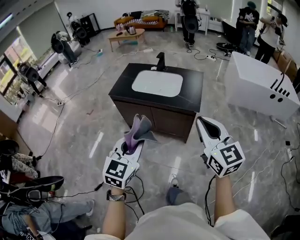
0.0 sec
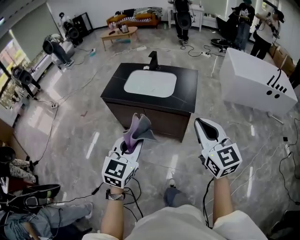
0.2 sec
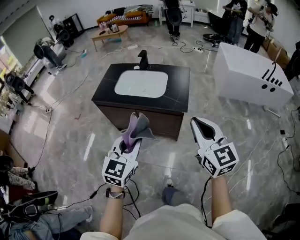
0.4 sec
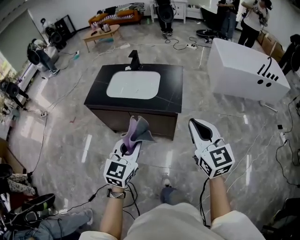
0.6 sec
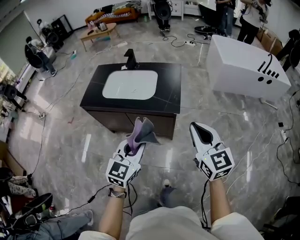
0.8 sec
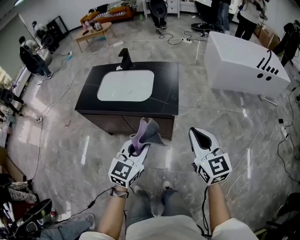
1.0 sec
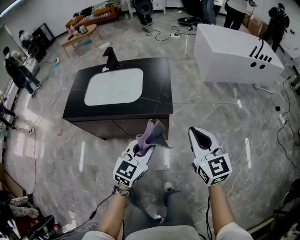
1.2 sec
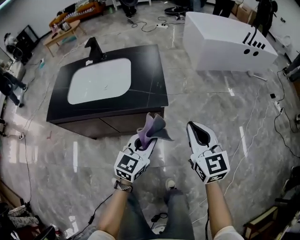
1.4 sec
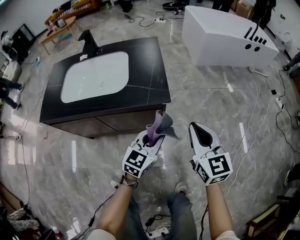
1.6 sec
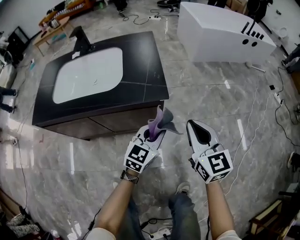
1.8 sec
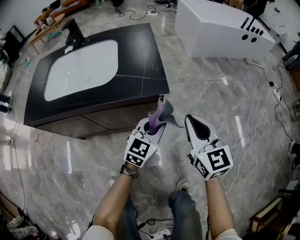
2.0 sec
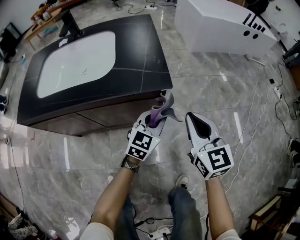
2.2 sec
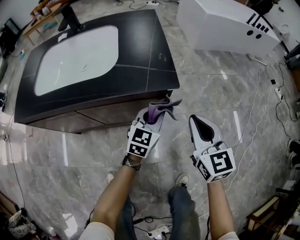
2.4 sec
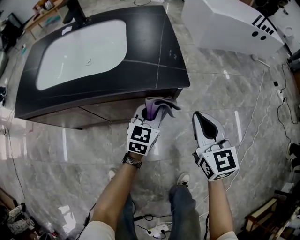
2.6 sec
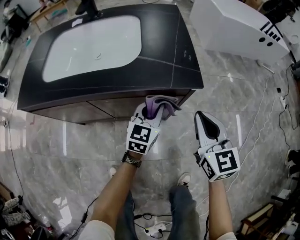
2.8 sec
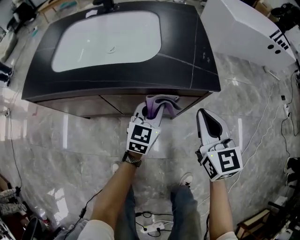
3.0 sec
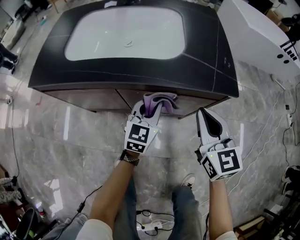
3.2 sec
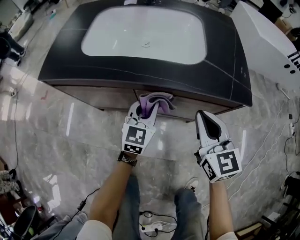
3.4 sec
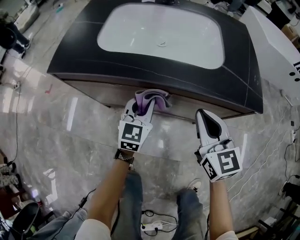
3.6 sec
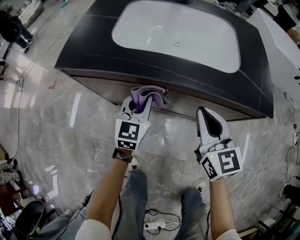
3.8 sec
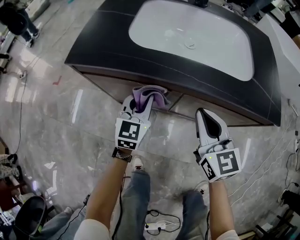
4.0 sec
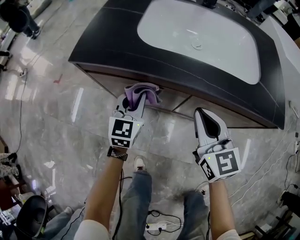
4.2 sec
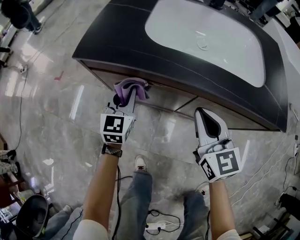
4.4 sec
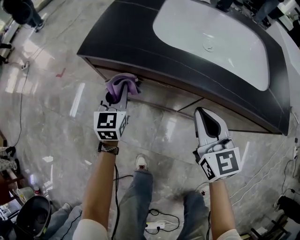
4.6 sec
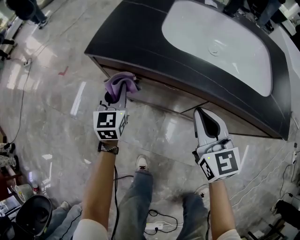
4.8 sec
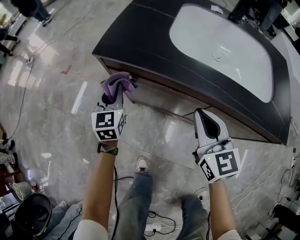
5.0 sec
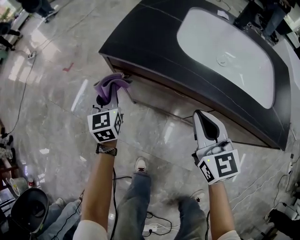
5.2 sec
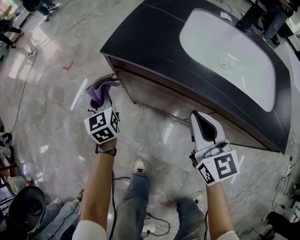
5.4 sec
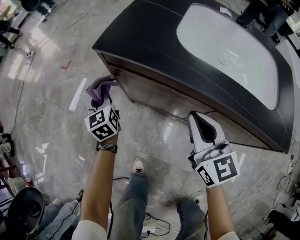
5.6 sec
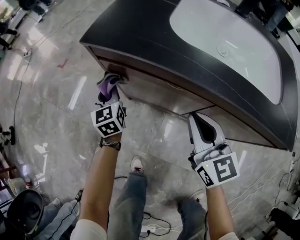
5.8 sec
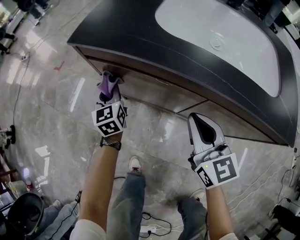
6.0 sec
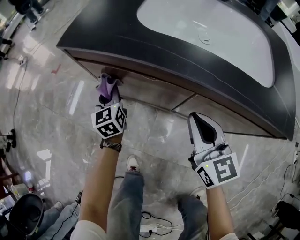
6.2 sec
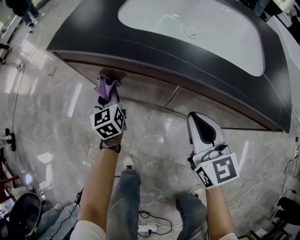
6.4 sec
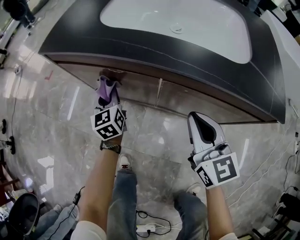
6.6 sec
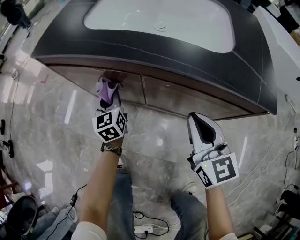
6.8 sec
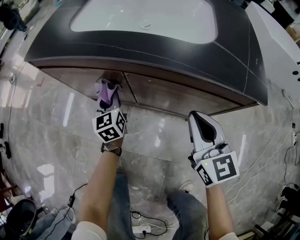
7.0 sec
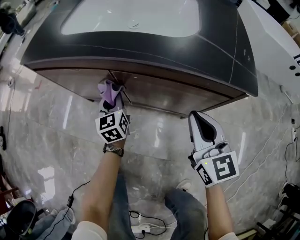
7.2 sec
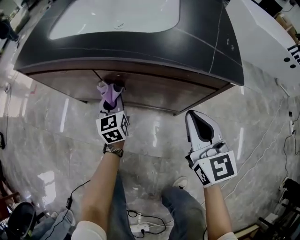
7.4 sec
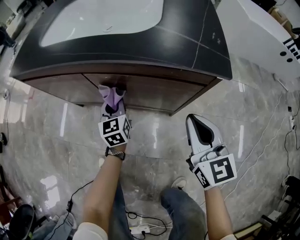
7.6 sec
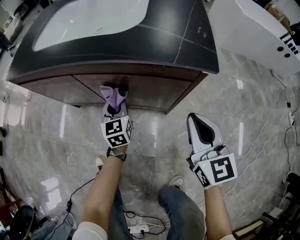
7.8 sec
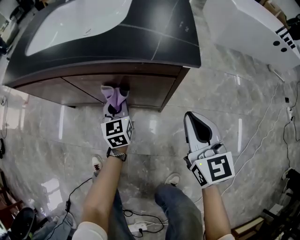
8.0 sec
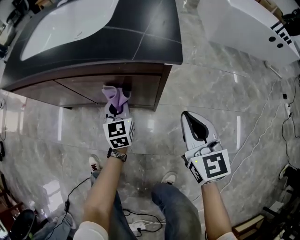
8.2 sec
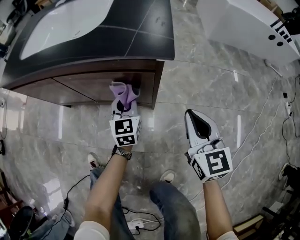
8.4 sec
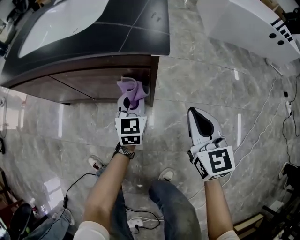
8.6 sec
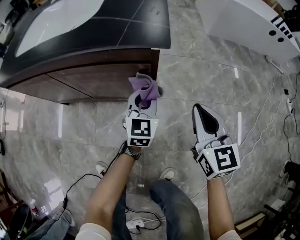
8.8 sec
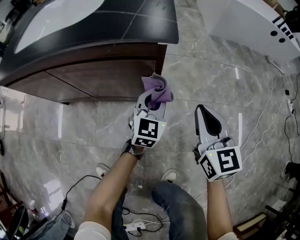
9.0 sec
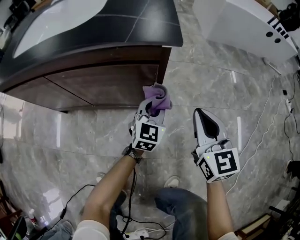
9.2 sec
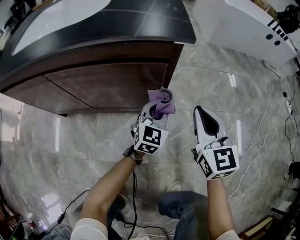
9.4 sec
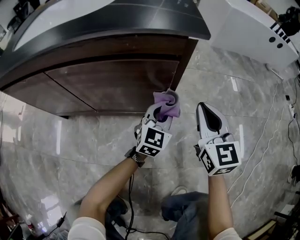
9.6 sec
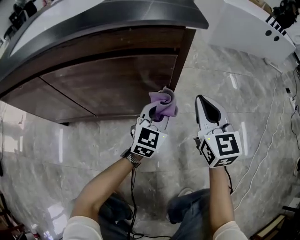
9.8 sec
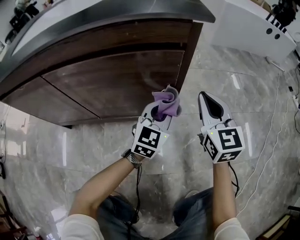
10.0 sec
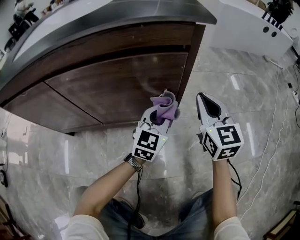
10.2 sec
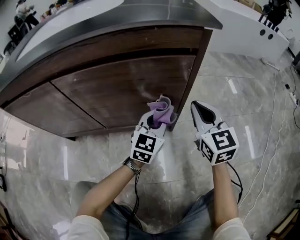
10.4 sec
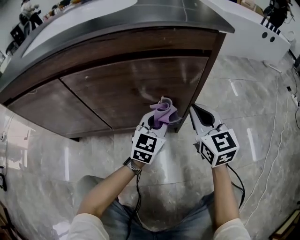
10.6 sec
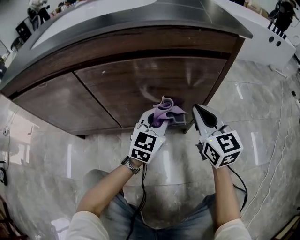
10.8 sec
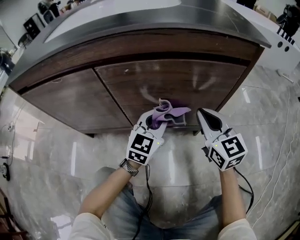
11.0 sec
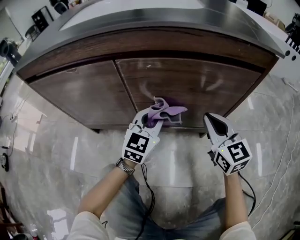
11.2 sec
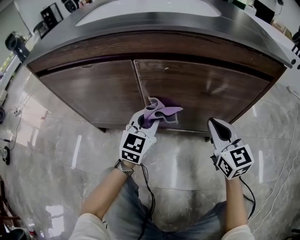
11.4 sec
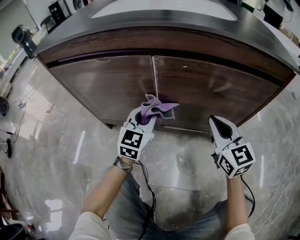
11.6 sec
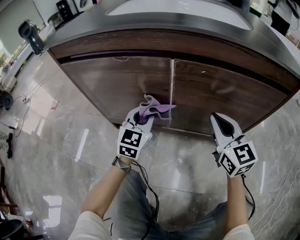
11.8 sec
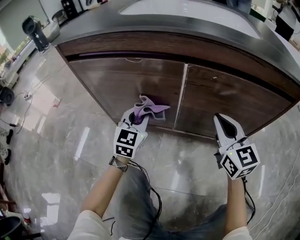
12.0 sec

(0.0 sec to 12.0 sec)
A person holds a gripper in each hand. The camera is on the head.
0.0 sec - 1.6 sec: The left gripper moves roughly 50 cm, and rotates about 40 degrees. Meanwhile the right gripper is displaced downward by approximately 30 cm, and rotates roughly 30 degrees.
1.6 sec - 3.0 sec: The right gripper travels to the left and downward by roughly 20 cm; the left gripper goes about 25 cm to the left, downward and forward.
3.0 sec - 4.4 sec: Both grippers travel together to the left, roughly 40 cm. The left gripper changes its angle by some 30 degrees.
4.4 sec - 6.0 sec: The left gripper moves to the left and downward, some 10 cm, and turns by about 30 degrees.
6.0 sec - 7.6 sec: Both grippers move to the right and backward, approximately 40 cm.
7.6 sec - 9.0 sec: The left gripper travels to the right by approximately 30 cm, and turns by some 40 degrees. Meanwhile the right gripper moves to the right, roughly 15 cm.
9.0 sec - 10.4 sec: The left gripper heads downward and to the left, covering about 15 cm. The right gripper is displaced downward, to the left and forward by some 15 cm.
10.4 sec - 12.0 sec: The right gripper heads to the left, covering some 30 cm. The left gripper heads to the left, covering about 40 cm, and turns by about 30 degrees.

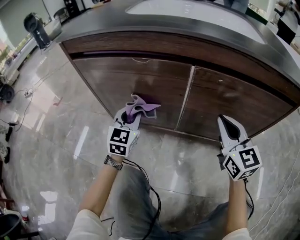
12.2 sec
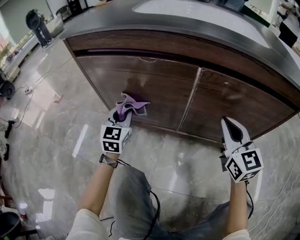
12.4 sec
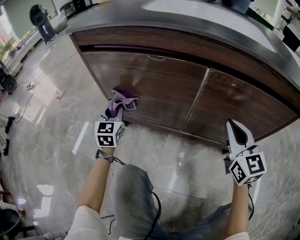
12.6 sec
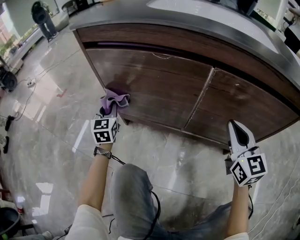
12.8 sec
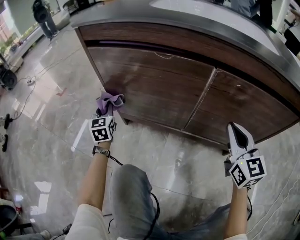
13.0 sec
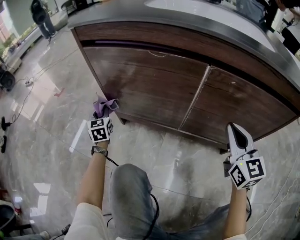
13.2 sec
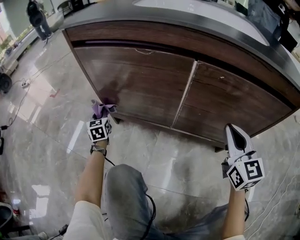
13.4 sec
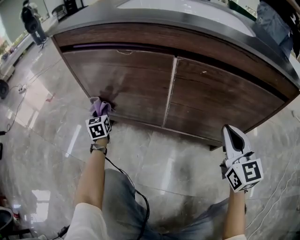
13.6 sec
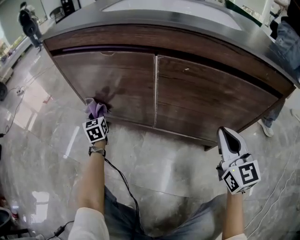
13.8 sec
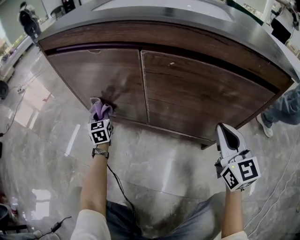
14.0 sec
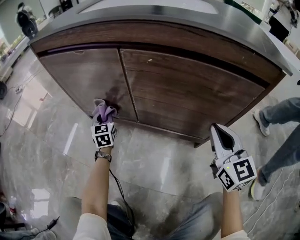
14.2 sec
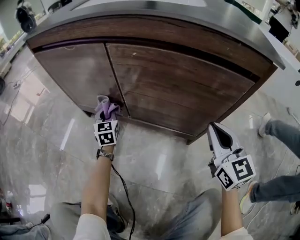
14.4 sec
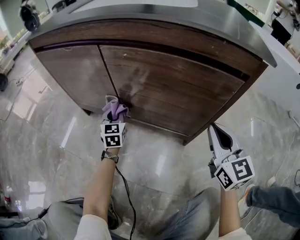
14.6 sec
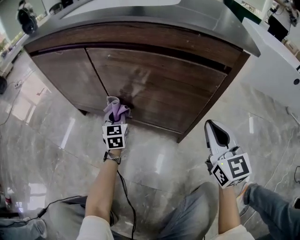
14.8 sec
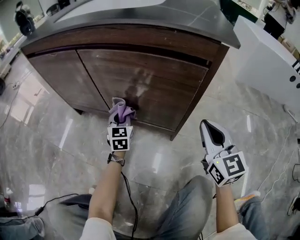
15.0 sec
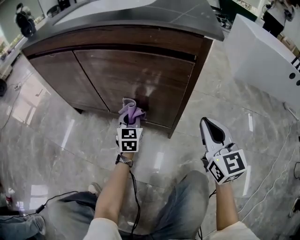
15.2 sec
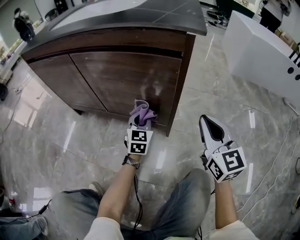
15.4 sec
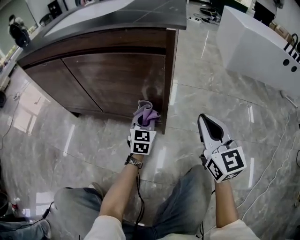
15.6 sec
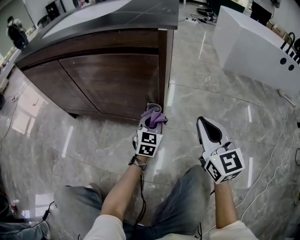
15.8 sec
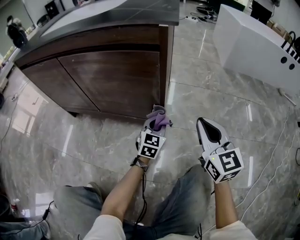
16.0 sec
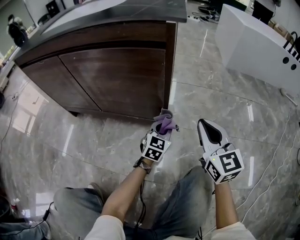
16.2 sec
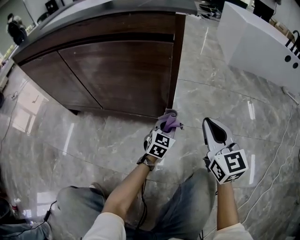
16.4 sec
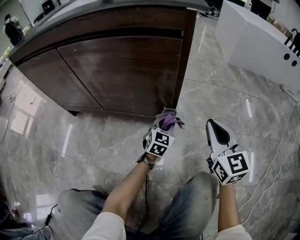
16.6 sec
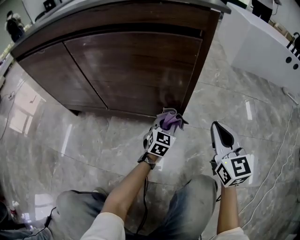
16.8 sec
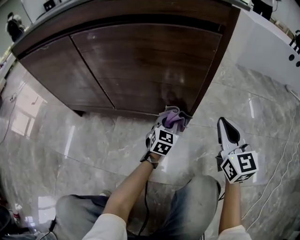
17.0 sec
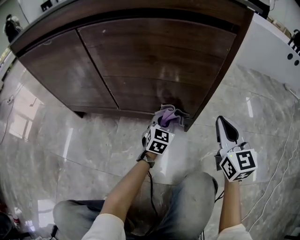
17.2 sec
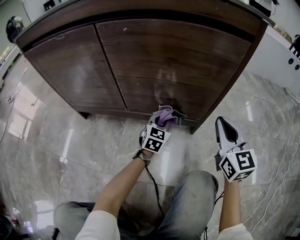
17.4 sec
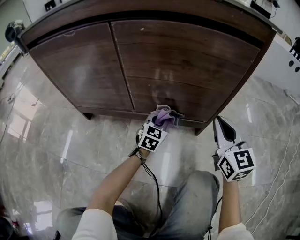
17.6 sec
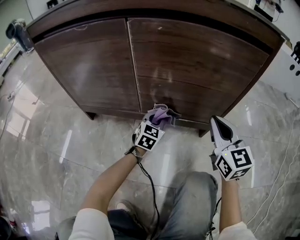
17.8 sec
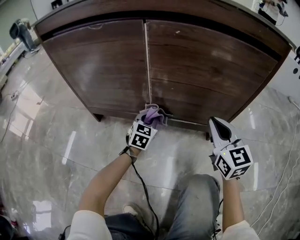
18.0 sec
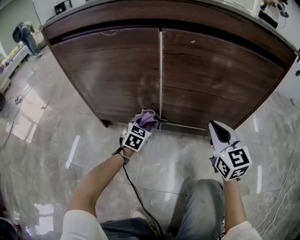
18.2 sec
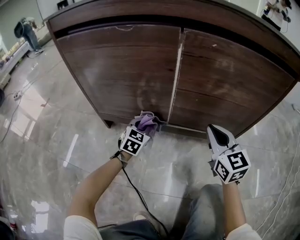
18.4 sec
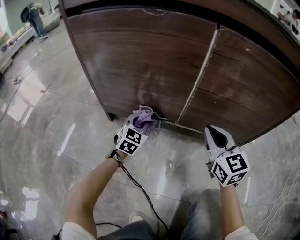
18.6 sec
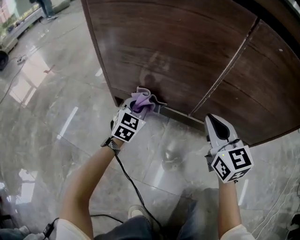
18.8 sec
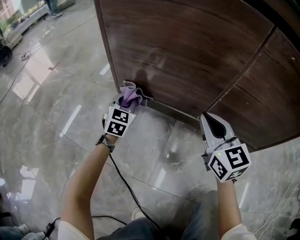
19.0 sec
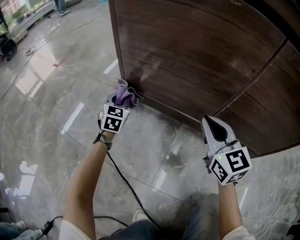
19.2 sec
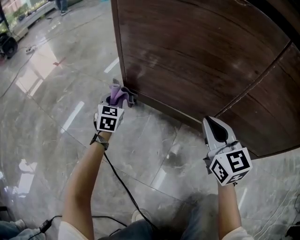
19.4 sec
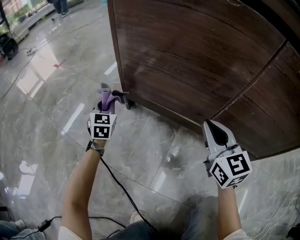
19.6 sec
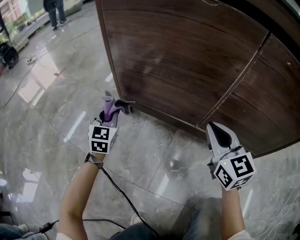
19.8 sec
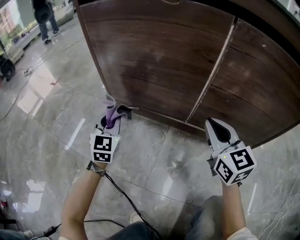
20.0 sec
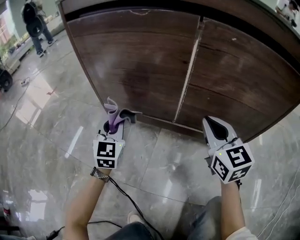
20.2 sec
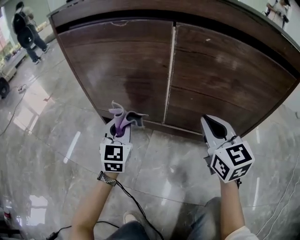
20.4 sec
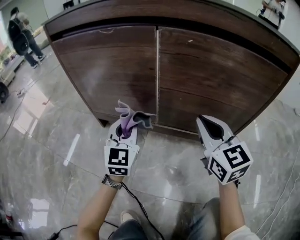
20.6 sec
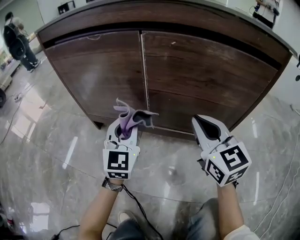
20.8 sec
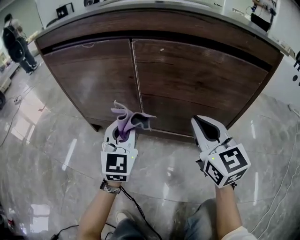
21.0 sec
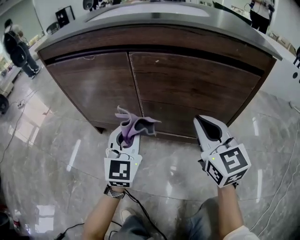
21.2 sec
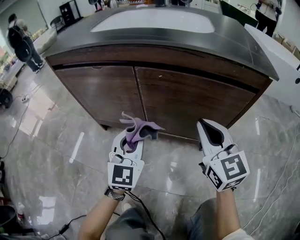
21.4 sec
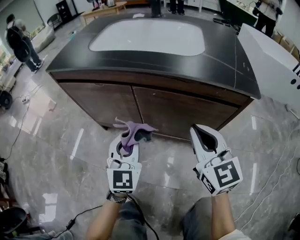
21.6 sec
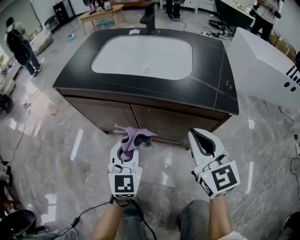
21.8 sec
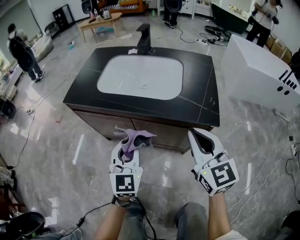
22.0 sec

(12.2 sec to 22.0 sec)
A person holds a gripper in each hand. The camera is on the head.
12.2 sec - 13.6 sec: The left gripper travels to the left, downward and forward by approximately 20 cm, and turns by about 30 degrees. The right gripper is displaced backward and to the right by approximately 10 cm.
13.6 sec - 15.0 sec: The right gripper shifts some 20 cm to the right and backward. Meanwhile the left gripper is displaced to the right and backward by about 40 cm.
15.0 sec - 16.4 sec: The left gripper is displaced to the right by roughly 30 cm, and turns by some 30 degrees; the right gripper moves to the right, about 5 cm.
16.4 sec - 17.8 sec: Both grippers travel together to the left, roughly 25 cm.
17.8 sec - 19.2 sec: The left gripper ends up about 50 cm from where it was, and turns by approximately 30 degrees; the right gripper changes place by approximately 35 cm, and turns by roughly 20 degrees.
19.2 sec - 20.6 sec: The left gripper shifts approximately 35 cm to the right, upward and backward, and changes its angle by some 20 degrees; the right gripper travels to the right, upward and backward by about 25 cm.
20.6 sec - 22.0 sec: Both grippers travel together upward, about 40 cm.

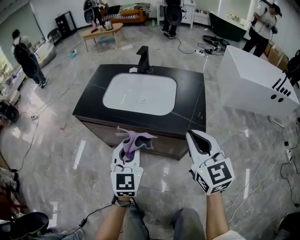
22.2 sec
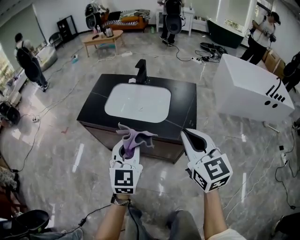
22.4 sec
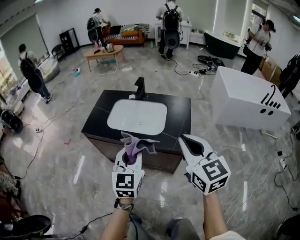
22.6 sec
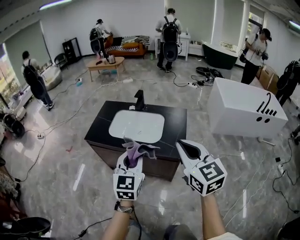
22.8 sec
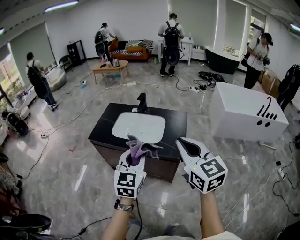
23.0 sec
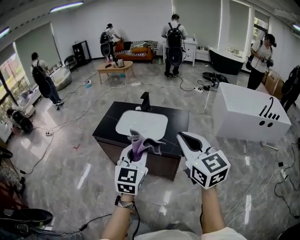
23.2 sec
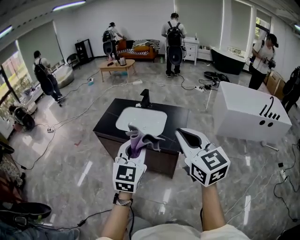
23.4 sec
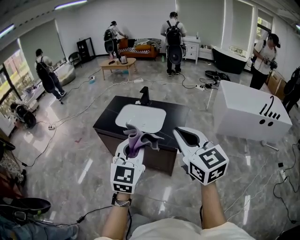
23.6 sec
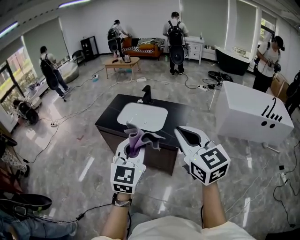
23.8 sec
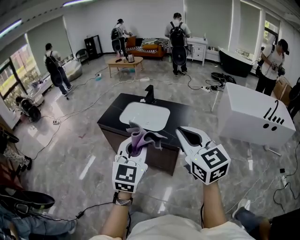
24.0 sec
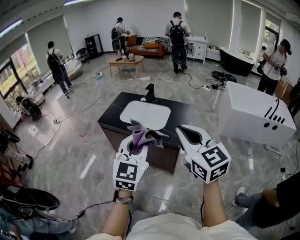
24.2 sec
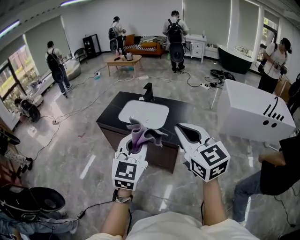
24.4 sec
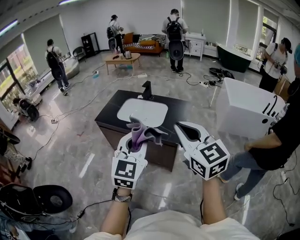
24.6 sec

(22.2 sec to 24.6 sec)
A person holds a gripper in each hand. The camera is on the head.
22.2 sec - 23.4 sec: Both grippers move upward and backward, approximately 30 cm.
23.4 sec - 24.6 sec: The left gripper changes place by about 5 cm.
